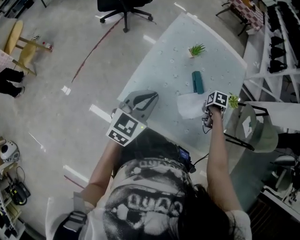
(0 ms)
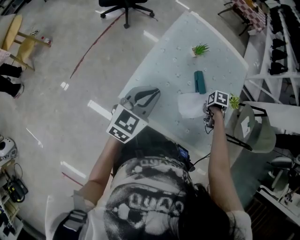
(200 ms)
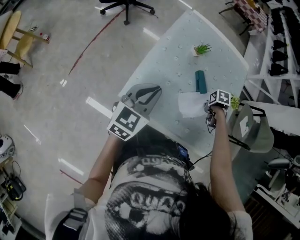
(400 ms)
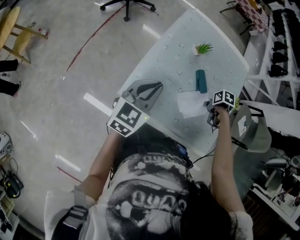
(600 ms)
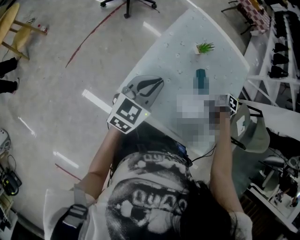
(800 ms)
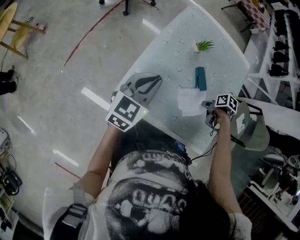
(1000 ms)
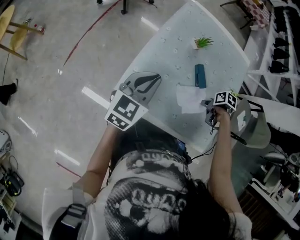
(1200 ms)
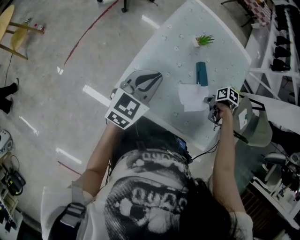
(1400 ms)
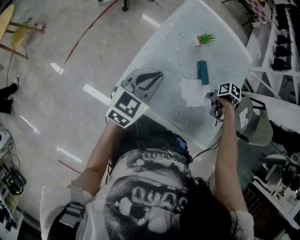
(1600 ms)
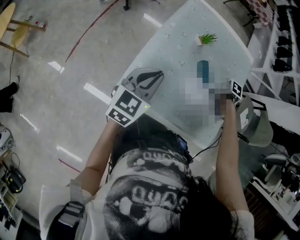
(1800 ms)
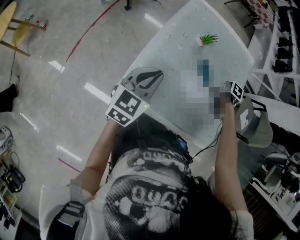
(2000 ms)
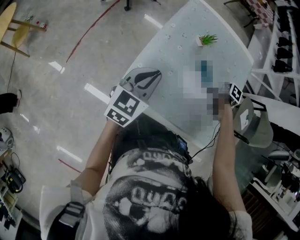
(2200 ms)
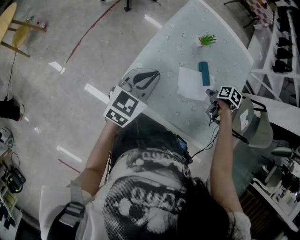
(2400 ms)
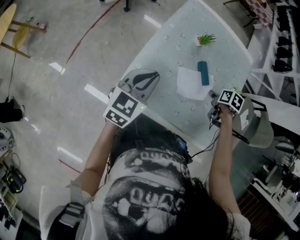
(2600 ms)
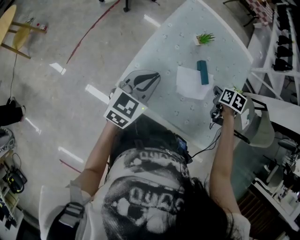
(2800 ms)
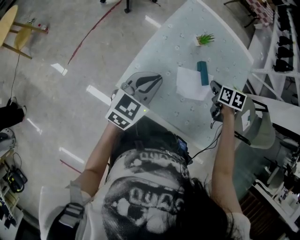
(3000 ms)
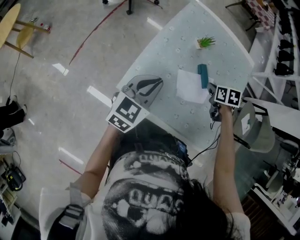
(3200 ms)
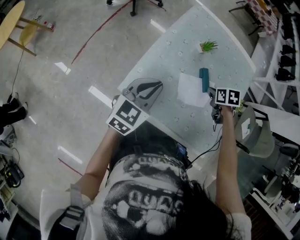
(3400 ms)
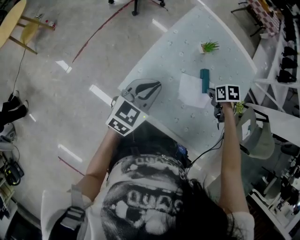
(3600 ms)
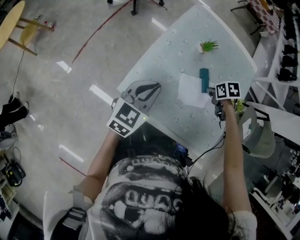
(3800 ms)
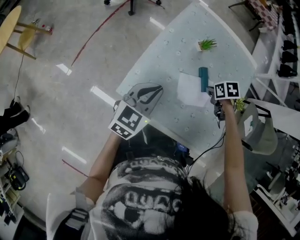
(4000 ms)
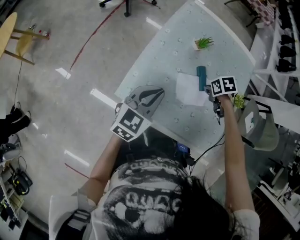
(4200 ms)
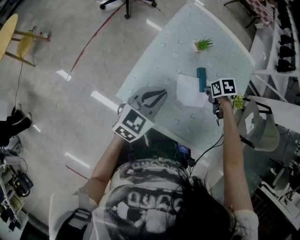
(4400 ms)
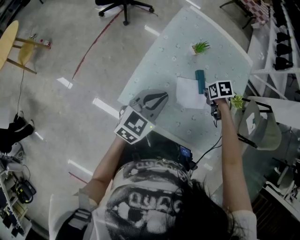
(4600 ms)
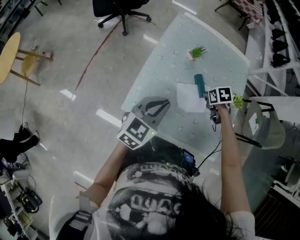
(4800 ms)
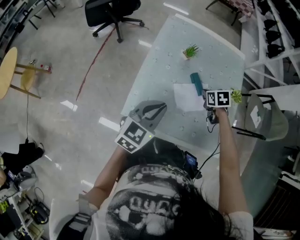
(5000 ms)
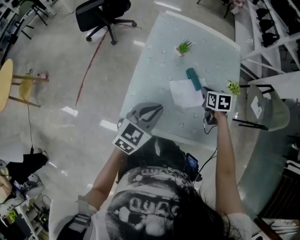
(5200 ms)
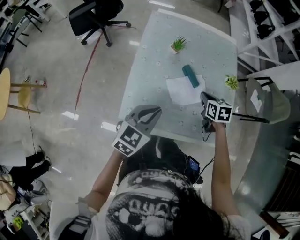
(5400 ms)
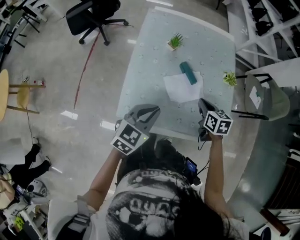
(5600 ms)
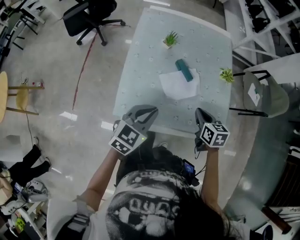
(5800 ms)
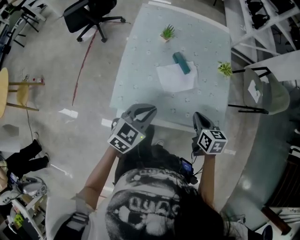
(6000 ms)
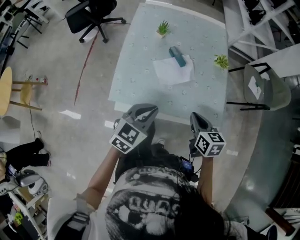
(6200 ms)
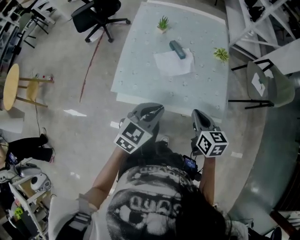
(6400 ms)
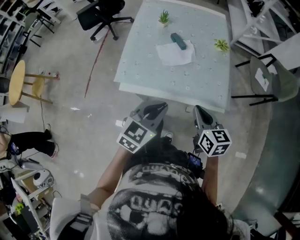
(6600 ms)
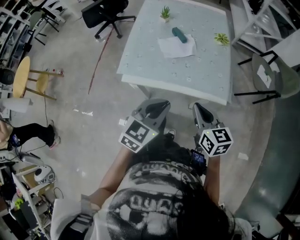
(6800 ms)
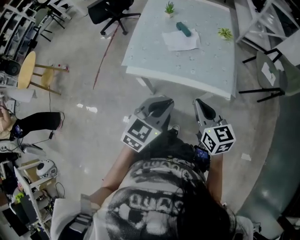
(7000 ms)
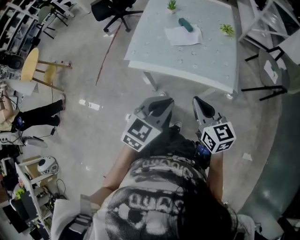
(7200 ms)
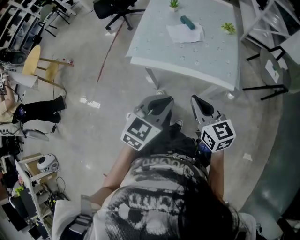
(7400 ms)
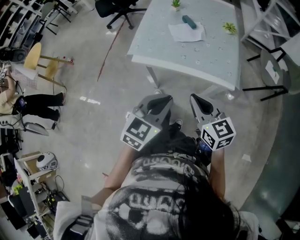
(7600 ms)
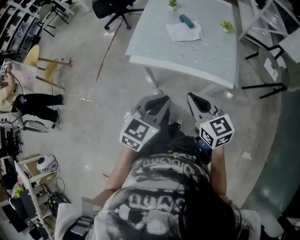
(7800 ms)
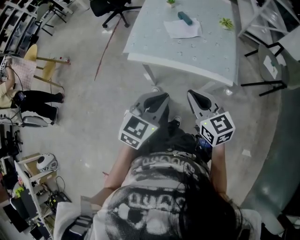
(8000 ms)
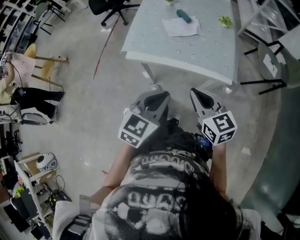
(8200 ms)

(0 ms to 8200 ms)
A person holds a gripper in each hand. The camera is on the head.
1600 ms - 3200 ms: The right gripper shifts by about 10 cm, changes its angle by roughly 40 degrees, and opens, then closes once more.
3200 ms - 5000 ms: The left gripper moves some 5 cm.
5000 ms - 6600 ms: The right gripper is displaced backward by approximately 35 cm, and tilts its fingers about 40 degrees upward. Meanwhile the left gripper travels backward and to the right by approximately 25 cm.
6600 ms - 8200 ms: The grippers both shift backward by some 10 cm. The right gripper changes its angle by some 20 degrees.

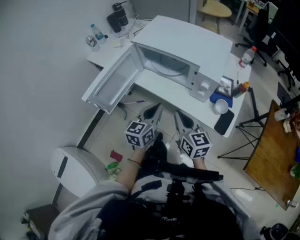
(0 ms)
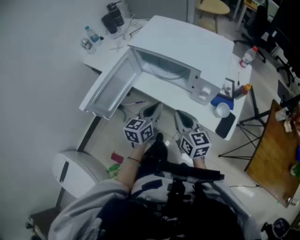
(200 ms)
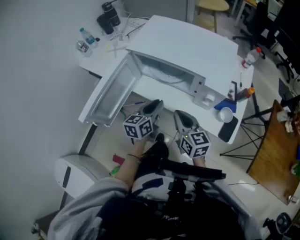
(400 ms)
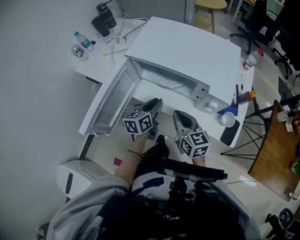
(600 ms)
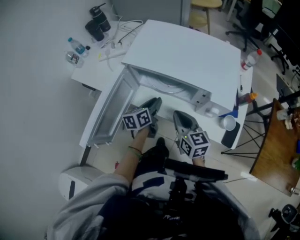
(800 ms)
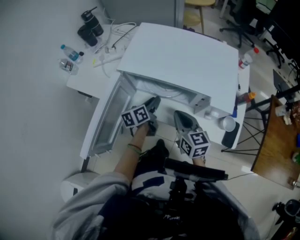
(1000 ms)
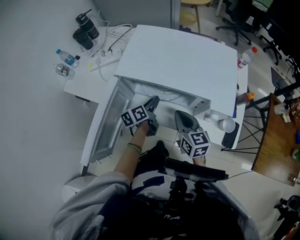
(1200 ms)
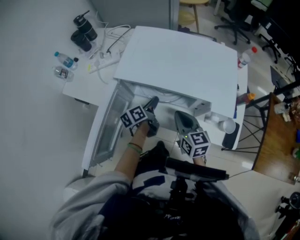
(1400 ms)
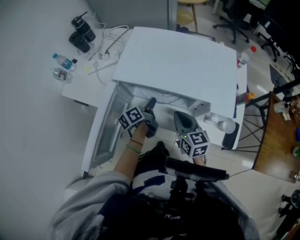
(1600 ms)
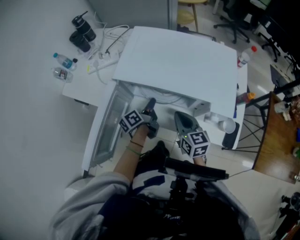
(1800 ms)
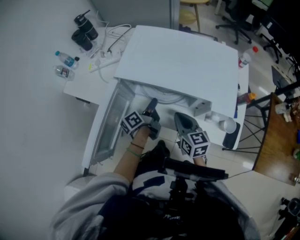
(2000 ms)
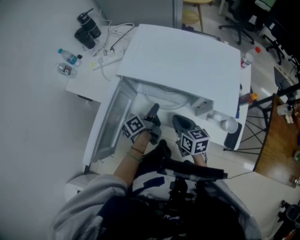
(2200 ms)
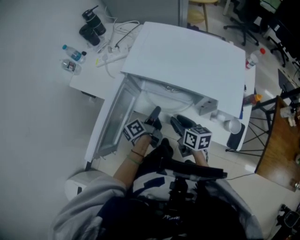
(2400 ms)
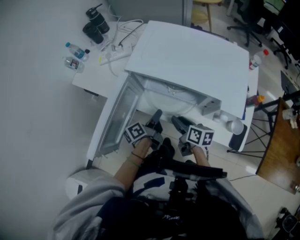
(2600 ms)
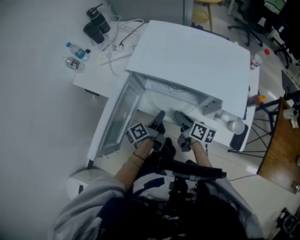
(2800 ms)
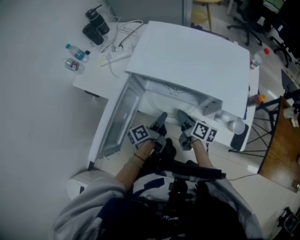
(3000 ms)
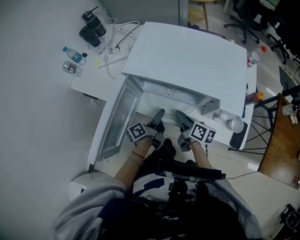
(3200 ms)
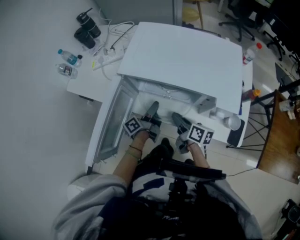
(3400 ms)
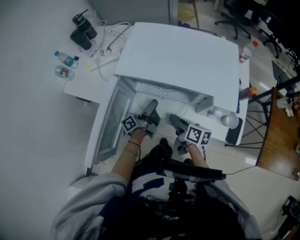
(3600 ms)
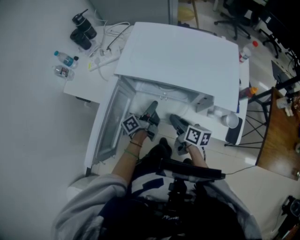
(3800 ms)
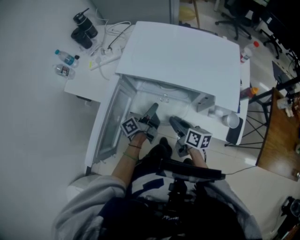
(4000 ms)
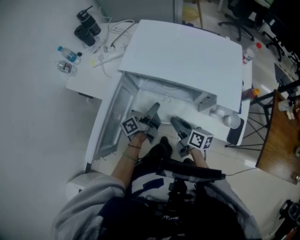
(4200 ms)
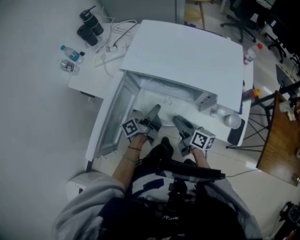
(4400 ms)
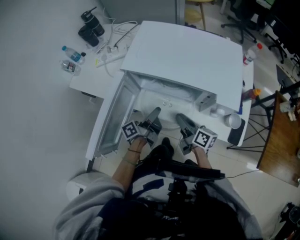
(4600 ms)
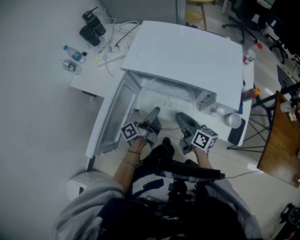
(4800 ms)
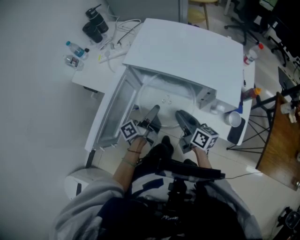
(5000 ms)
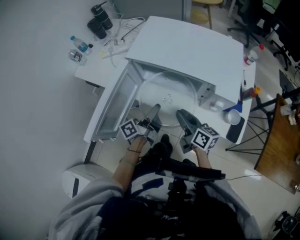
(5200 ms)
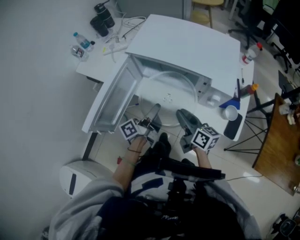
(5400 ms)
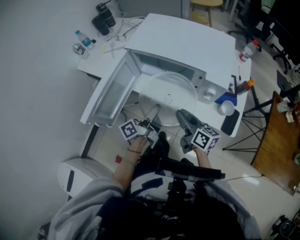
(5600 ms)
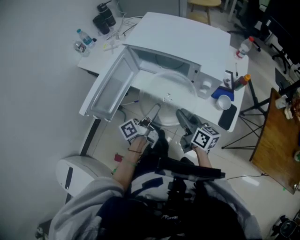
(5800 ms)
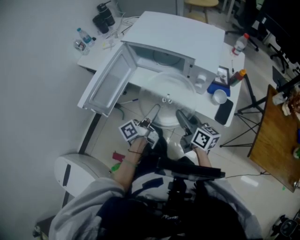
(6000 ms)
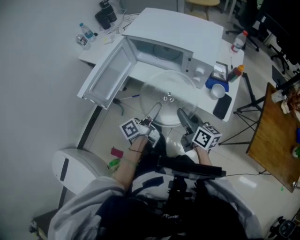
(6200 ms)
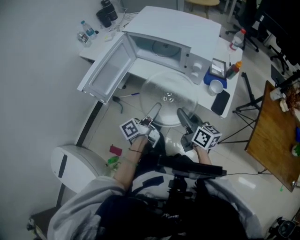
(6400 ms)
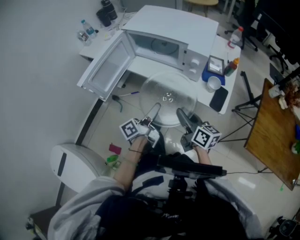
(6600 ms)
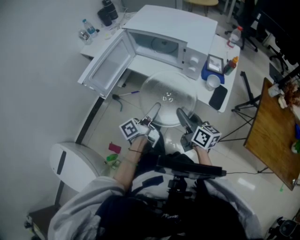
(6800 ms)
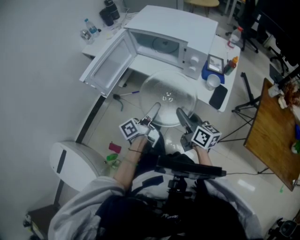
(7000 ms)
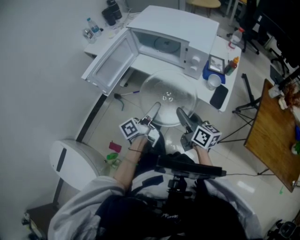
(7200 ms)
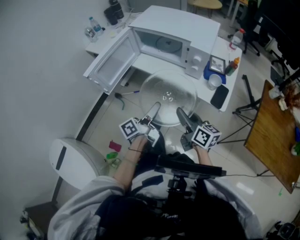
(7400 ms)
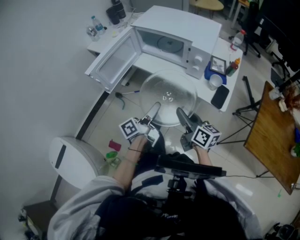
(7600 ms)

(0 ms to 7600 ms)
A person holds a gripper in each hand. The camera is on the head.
0 ms - 1600 ms: The right gripper changes place by approximately 20 cm.
1600 ms - 3000 ms: The right gripper is displaced downward by some 10 cm, twists some 40 degrees clockwise, seen from behind, and opens.
4600 ms - 6000 ms: The right gripper shifts by approximately 20 cm.
6000 ms - 7600 ms: The right gripper moves some 10 cm.

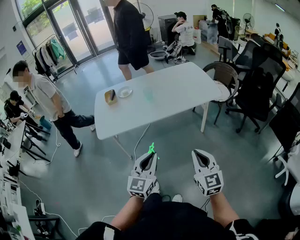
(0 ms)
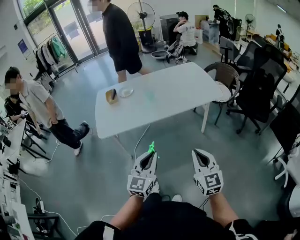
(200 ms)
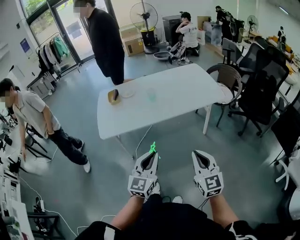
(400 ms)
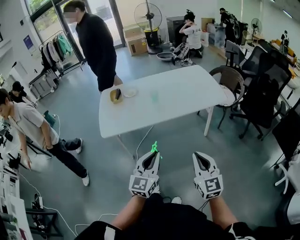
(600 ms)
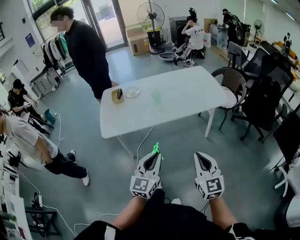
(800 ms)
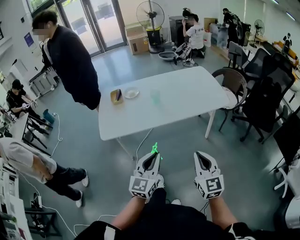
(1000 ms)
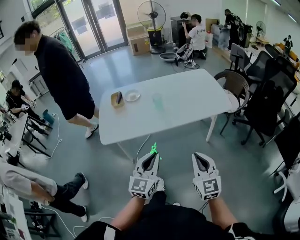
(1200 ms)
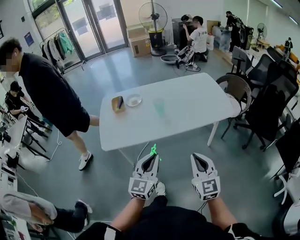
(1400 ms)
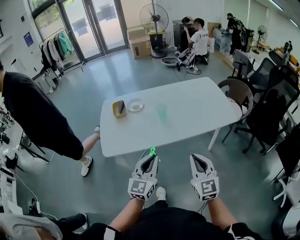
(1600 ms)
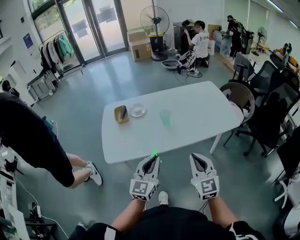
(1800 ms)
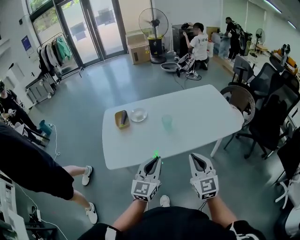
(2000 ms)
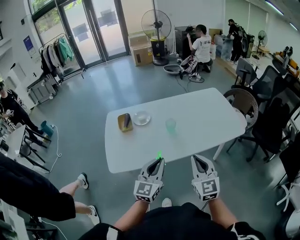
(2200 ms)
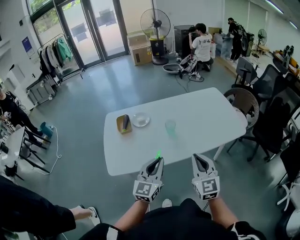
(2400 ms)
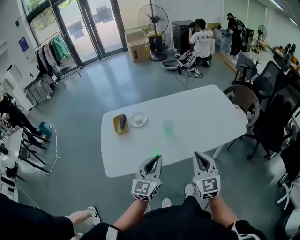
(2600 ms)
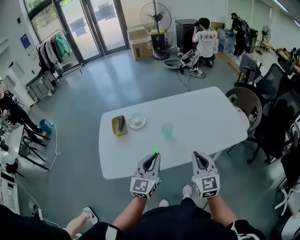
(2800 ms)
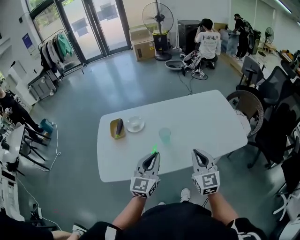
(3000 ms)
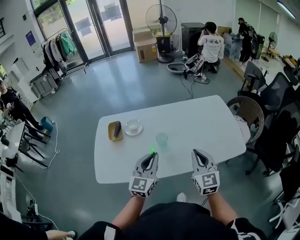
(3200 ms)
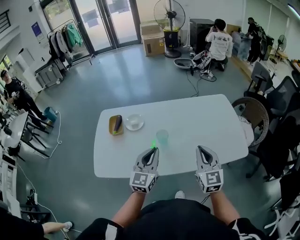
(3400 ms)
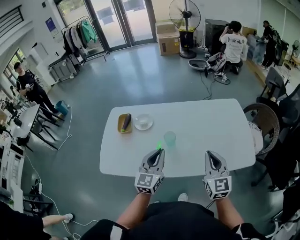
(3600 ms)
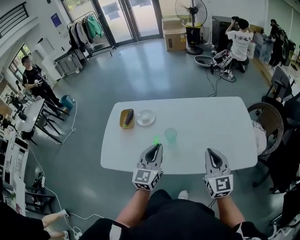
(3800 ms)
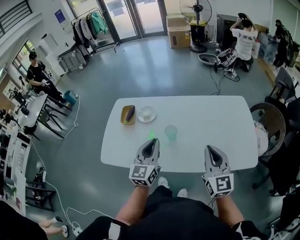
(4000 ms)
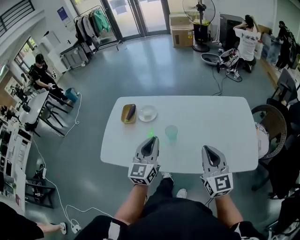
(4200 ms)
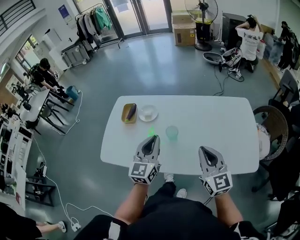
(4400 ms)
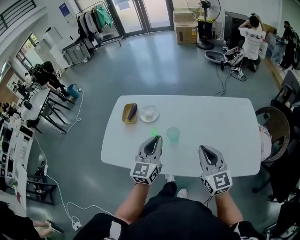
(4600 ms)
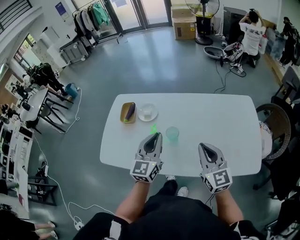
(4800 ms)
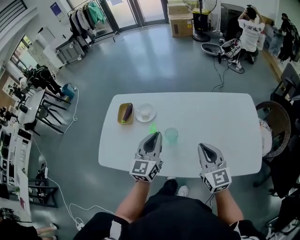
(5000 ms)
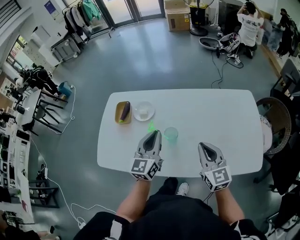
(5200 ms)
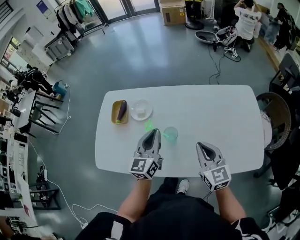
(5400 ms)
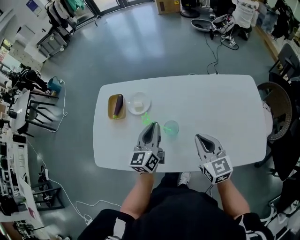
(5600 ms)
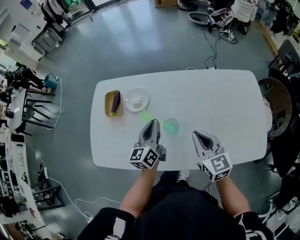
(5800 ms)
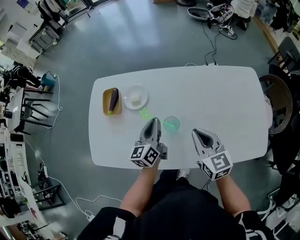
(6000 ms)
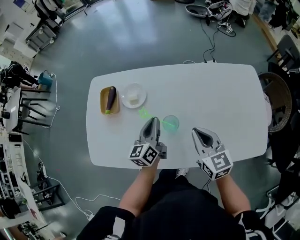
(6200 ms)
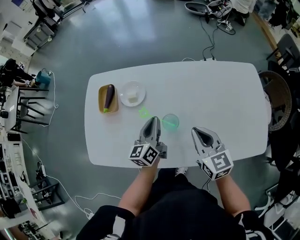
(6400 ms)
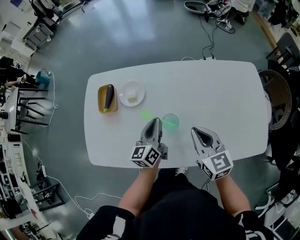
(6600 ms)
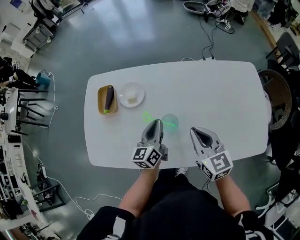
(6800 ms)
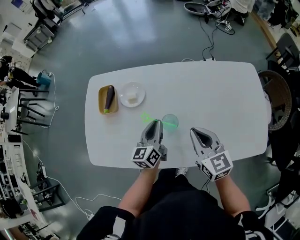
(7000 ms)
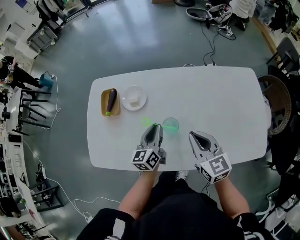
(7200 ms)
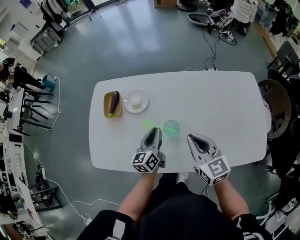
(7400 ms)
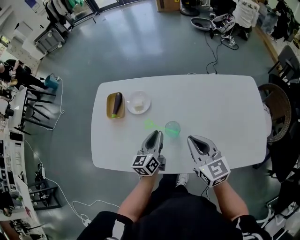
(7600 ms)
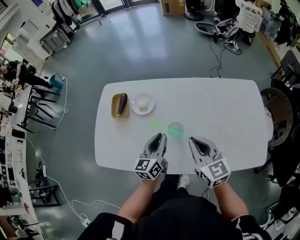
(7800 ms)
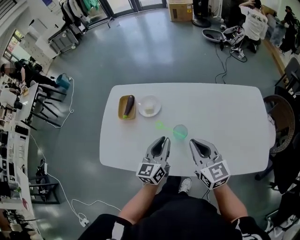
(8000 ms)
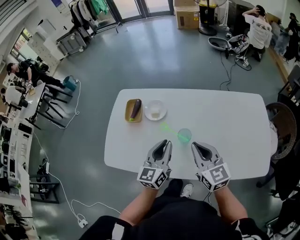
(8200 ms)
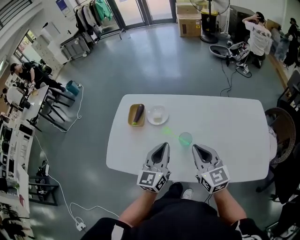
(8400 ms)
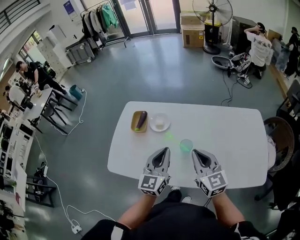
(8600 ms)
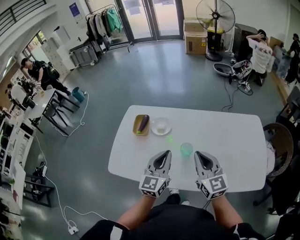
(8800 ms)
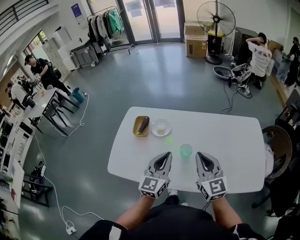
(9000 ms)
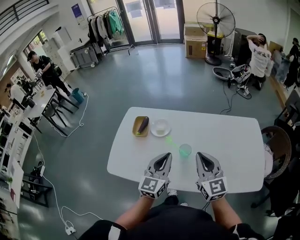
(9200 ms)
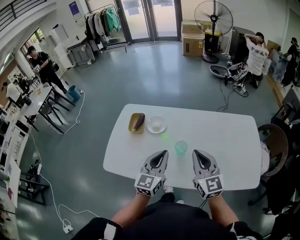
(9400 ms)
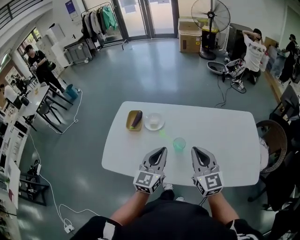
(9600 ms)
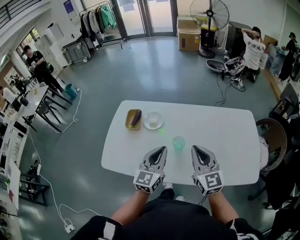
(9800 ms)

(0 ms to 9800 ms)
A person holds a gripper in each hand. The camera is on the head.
0 ms - 1400 ms: The left gripper is displaced forward by some 15 cm; the right gripper shifts about 15 cm forward and to the left.
1400 ms - 2800 ms: Both grippers travel together forward, approximately 25 cm.
2800 ms - 4200 ms: The two grippers go roughly 15 cm forward and to the right. The left gripper changes its angle by about 20 degrees; the right gripper rotates about 20 degrees.
4200 ms - 5600 ms: The left gripper shifts about 15 cm forward and downward, and turns by roughly 20 degrees. Meanwhile the right gripper shifts approximately 15 cm forward, downward and to the left, and turns by about 20 degrees.
5600 ms - 7000 ms: The left gripper is displaced downward by some 10 cm.
7000 ms - 8400 ms: The left gripper shifts approximately 15 cm upward and backward, and rotates roughly 20 degrees. The right gripper travels upward and to the left by about 10 cm.
8400 ms - 9800 ms: The right gripper changes place by roughly 5 cm.
